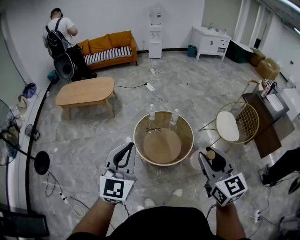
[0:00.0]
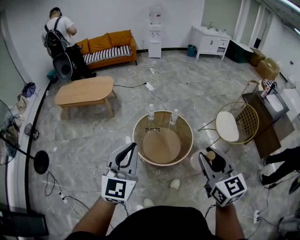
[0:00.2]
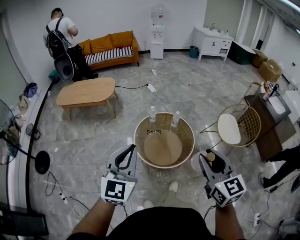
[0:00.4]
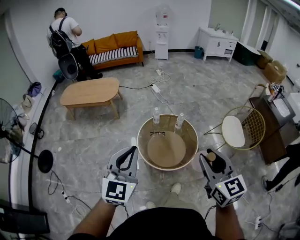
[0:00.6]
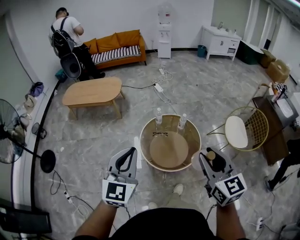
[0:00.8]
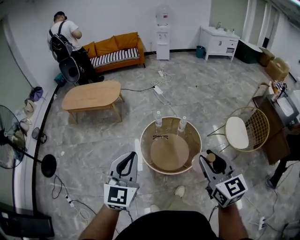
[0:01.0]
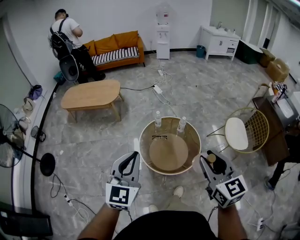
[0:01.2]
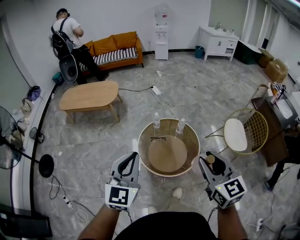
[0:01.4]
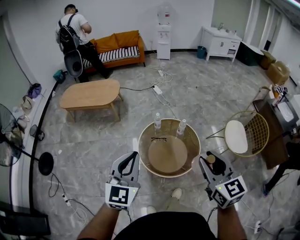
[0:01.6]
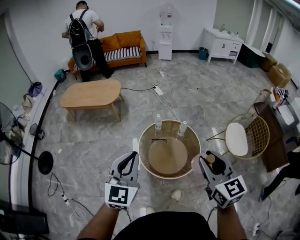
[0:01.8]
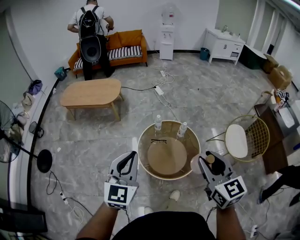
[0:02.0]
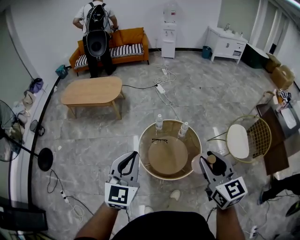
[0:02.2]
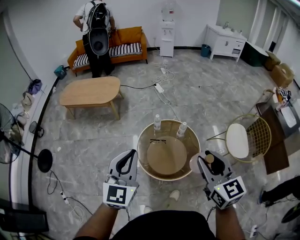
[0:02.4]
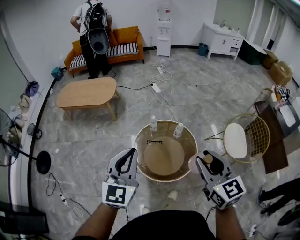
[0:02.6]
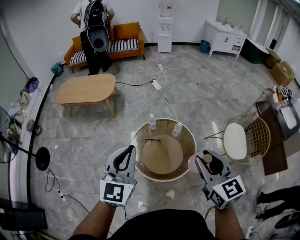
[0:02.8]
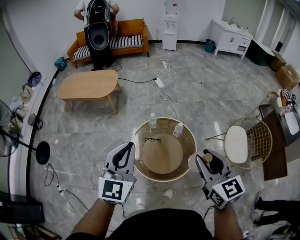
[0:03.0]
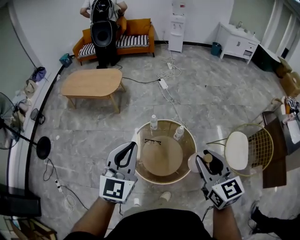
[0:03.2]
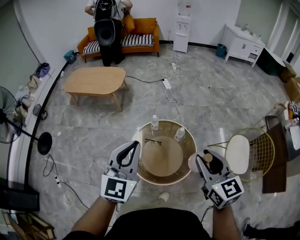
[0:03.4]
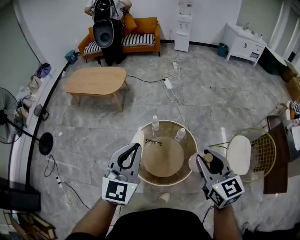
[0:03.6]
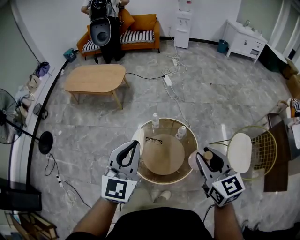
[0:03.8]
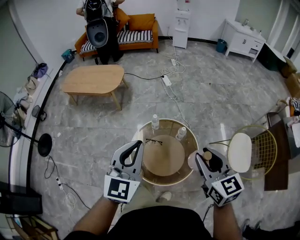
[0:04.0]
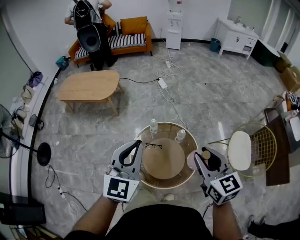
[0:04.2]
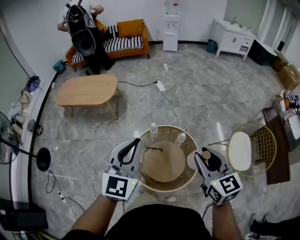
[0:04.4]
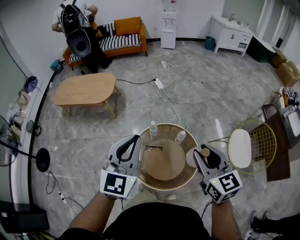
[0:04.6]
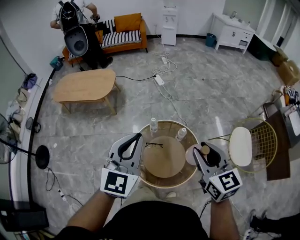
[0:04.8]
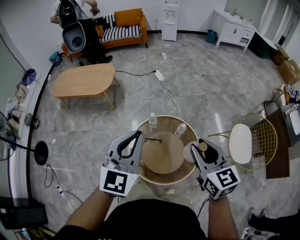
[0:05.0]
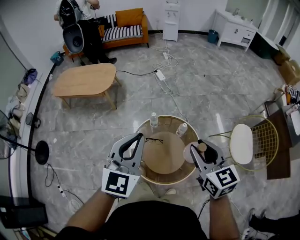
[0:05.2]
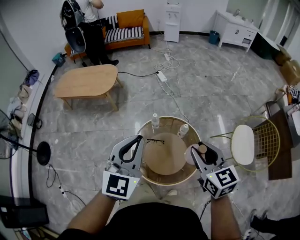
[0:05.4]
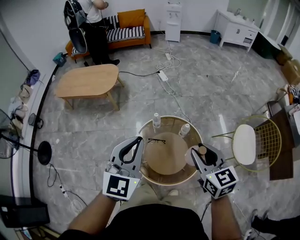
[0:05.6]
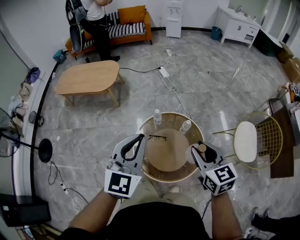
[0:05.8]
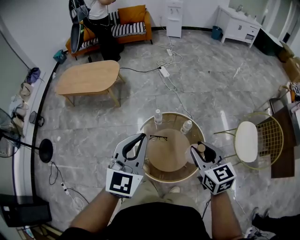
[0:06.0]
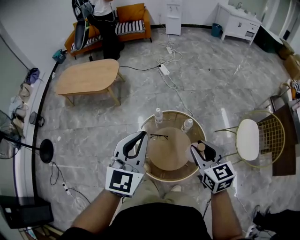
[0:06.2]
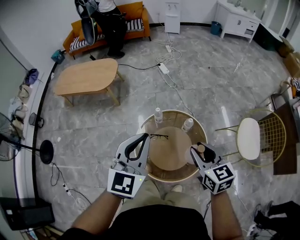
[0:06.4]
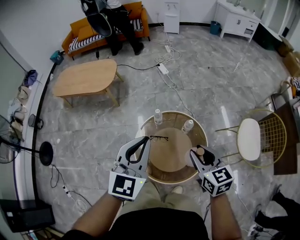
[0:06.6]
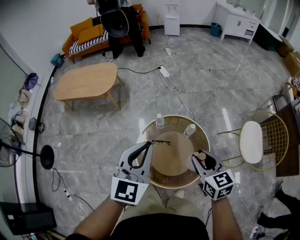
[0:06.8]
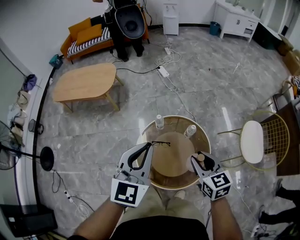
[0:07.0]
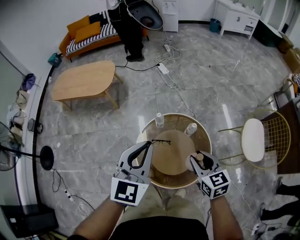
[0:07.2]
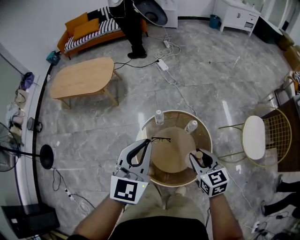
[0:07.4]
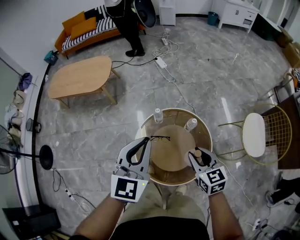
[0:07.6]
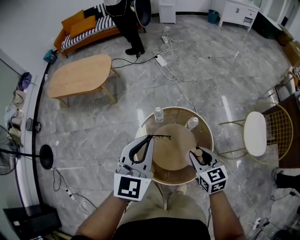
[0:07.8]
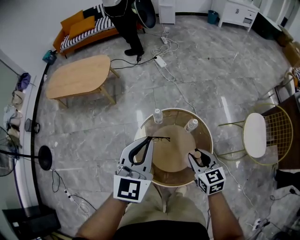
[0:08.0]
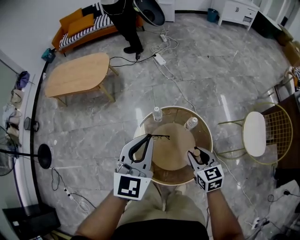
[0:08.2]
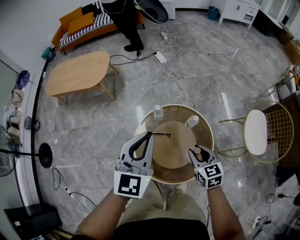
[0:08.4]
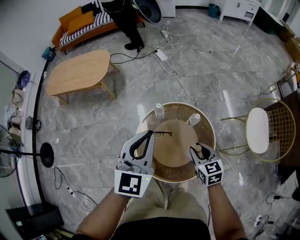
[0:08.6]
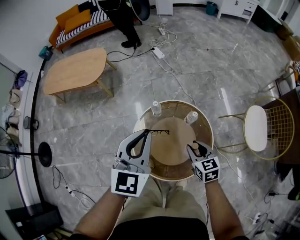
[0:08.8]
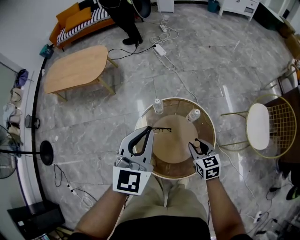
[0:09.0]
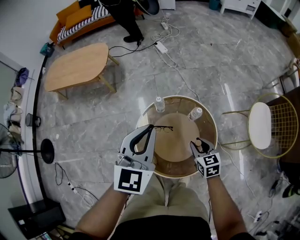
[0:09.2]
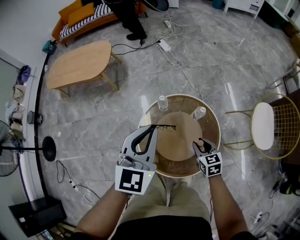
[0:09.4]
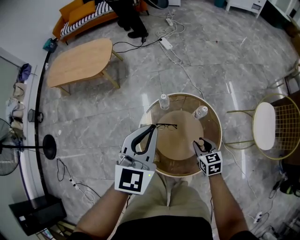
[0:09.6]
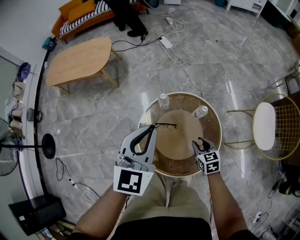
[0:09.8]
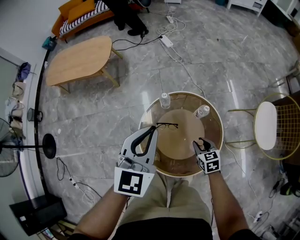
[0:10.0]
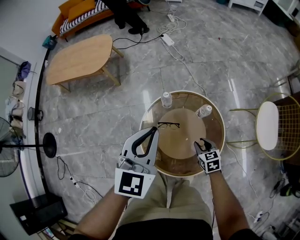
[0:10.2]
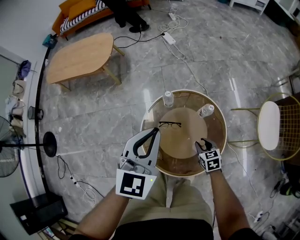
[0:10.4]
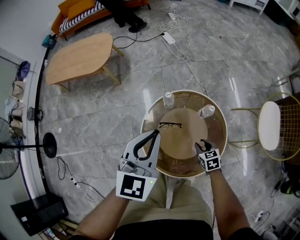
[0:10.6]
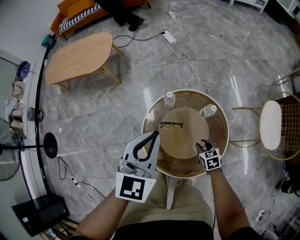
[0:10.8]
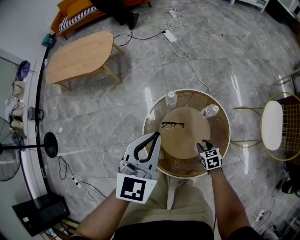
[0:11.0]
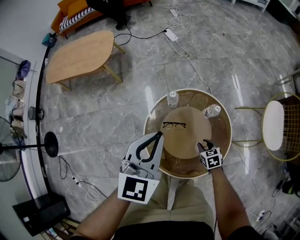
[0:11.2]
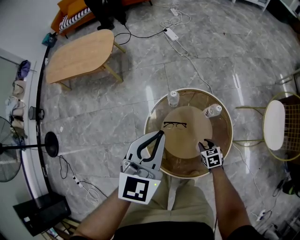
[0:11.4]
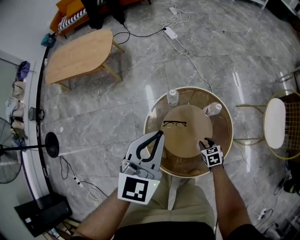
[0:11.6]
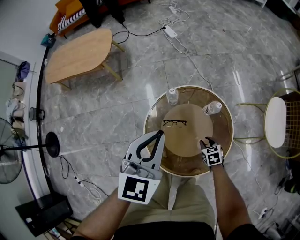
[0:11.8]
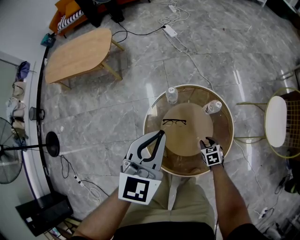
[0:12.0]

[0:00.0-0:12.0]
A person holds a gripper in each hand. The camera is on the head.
0.0 to 1.6 s: The grippers both shift forward by about 10 cm.
1.6 to 3.0 s: The grippers both shift forward and to the right by some 15 cm.
3.0 to 4.4 s: The grippers both shift forward by some 10 cm.
4.4 to 6.0 s: The right gripper shifts roughly 10 cm downward. Meanwhile the left gripper goes roughly 5 cm downward.
6.0 to 7.6 s: The left gripper shifts approximately 10 cm downward and forward. Meanwhile the right gripper travels downward by some 15 cm.
7.6 to 9.0 s: The left gripper changes place by about 5 cm; the right gripper shifts approximately 15 cm downward.
9.0 to 10.4 s: The right gripper is displaced downward by approximately 15 cm; the left gripper travels downward by about 5 cm.
10.4 to 12.0 s: The right gripper is displaced downward by approximately 10 cm.

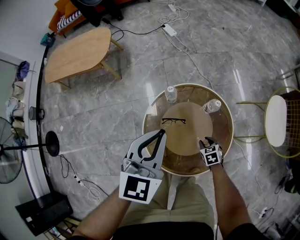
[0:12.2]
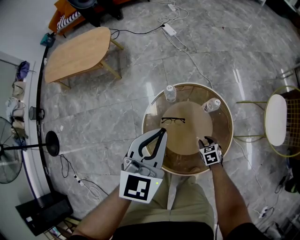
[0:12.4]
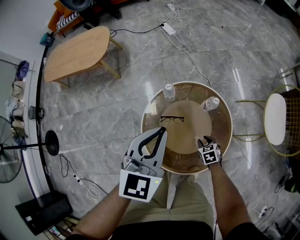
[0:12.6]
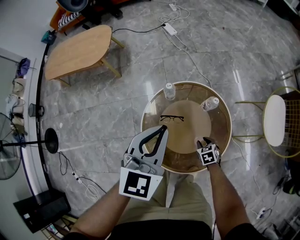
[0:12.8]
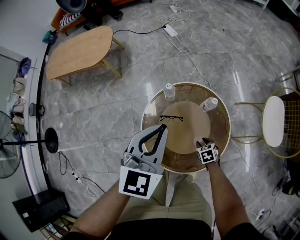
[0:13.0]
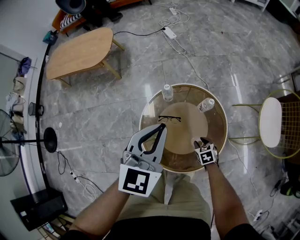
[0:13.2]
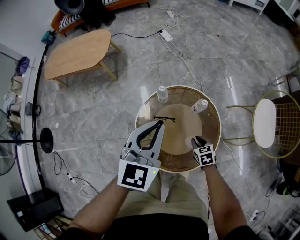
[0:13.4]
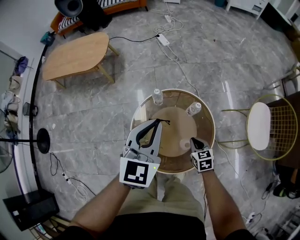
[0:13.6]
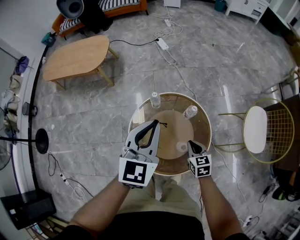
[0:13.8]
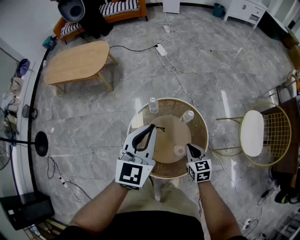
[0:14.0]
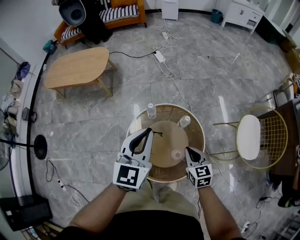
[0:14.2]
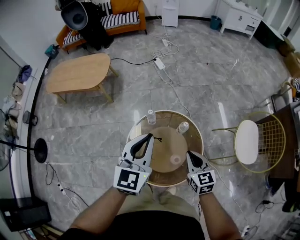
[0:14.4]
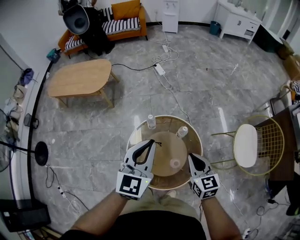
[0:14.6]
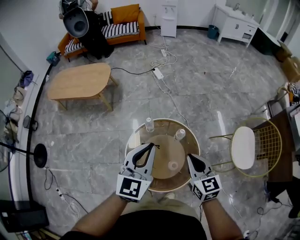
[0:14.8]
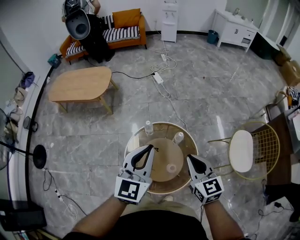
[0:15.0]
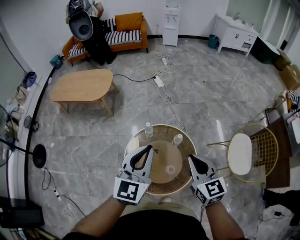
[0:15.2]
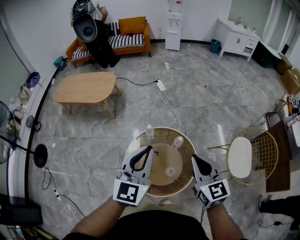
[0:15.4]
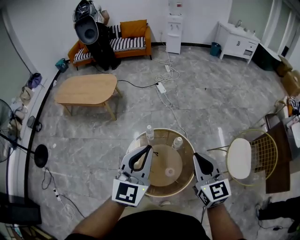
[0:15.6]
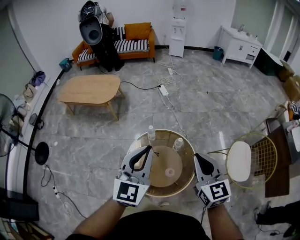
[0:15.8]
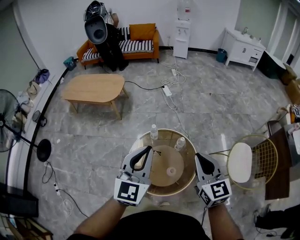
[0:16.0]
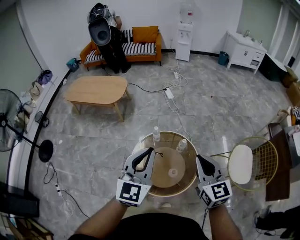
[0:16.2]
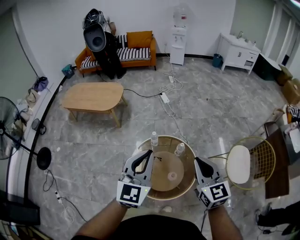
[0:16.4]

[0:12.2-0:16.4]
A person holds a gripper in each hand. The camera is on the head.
12.2 to 13.6 s: The right gripper heads upward, covering about 15 cm, and closes its fingers. Meanwhile the left gripper travels upward by roughly 5 cm.
13.6 to 15.0 s: The right gripper shifts roughly 30 cm upward, and changes its angle by roughly 30 degrees. The left gripper moves upward, approximately 10 cm.
15.0 to 16.4 s: The two grippers go roughly 10 cm upward and backward.

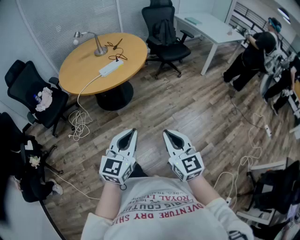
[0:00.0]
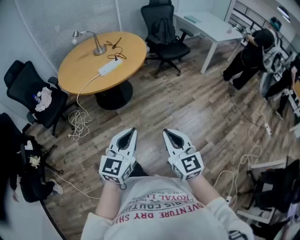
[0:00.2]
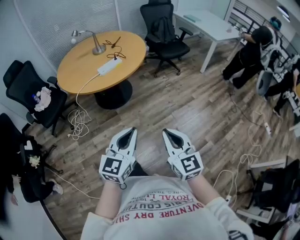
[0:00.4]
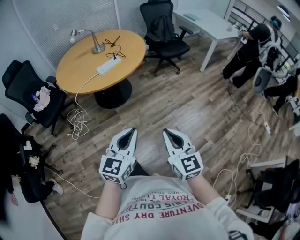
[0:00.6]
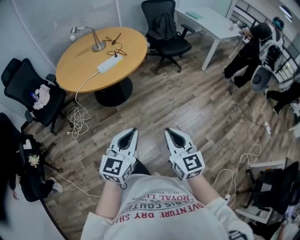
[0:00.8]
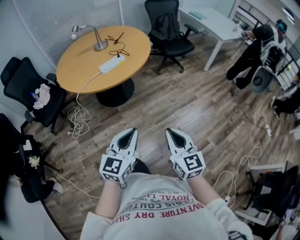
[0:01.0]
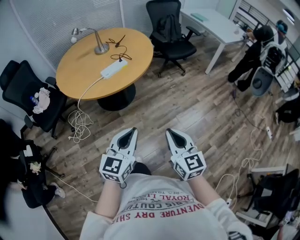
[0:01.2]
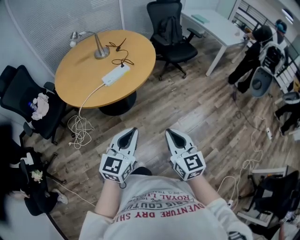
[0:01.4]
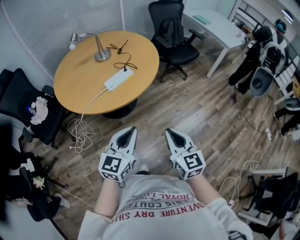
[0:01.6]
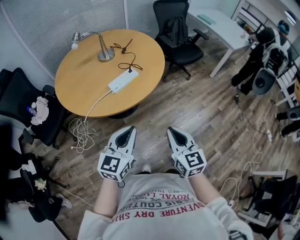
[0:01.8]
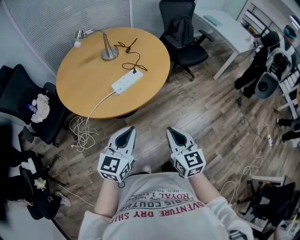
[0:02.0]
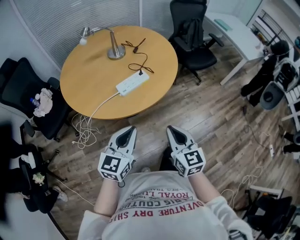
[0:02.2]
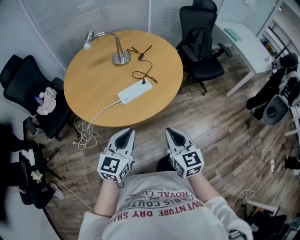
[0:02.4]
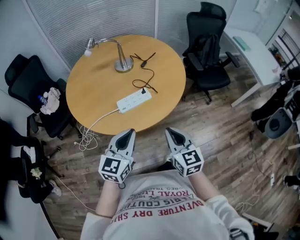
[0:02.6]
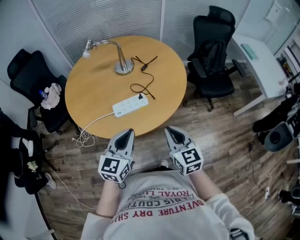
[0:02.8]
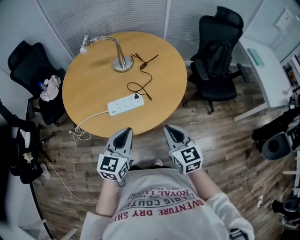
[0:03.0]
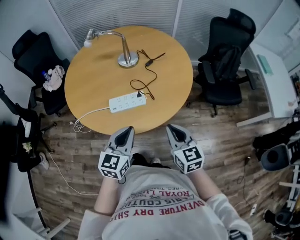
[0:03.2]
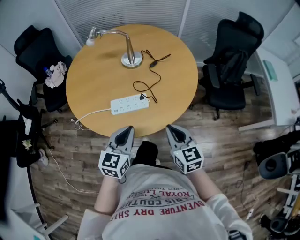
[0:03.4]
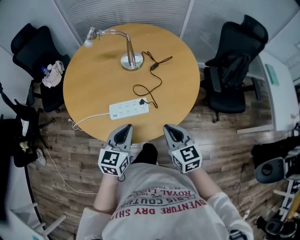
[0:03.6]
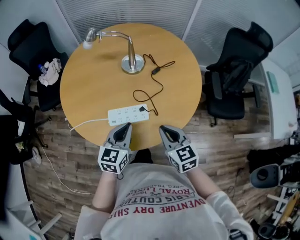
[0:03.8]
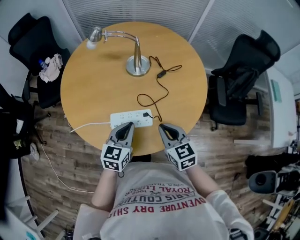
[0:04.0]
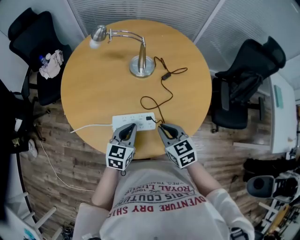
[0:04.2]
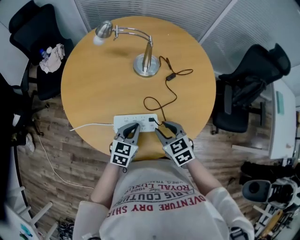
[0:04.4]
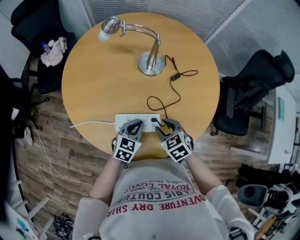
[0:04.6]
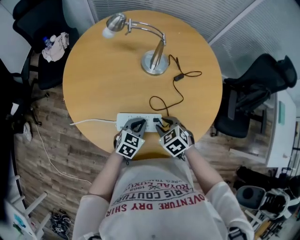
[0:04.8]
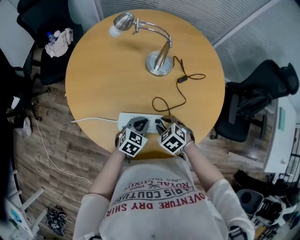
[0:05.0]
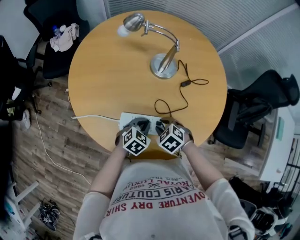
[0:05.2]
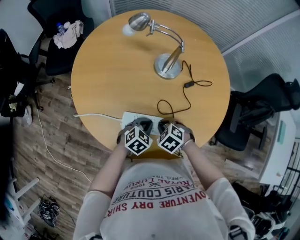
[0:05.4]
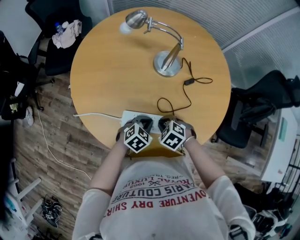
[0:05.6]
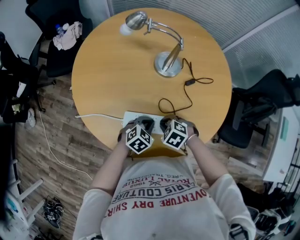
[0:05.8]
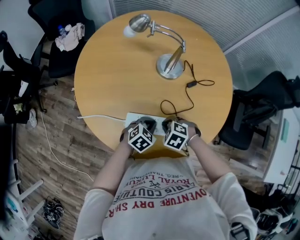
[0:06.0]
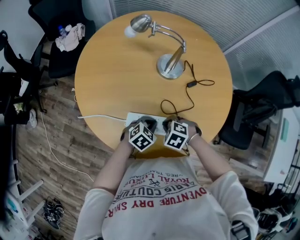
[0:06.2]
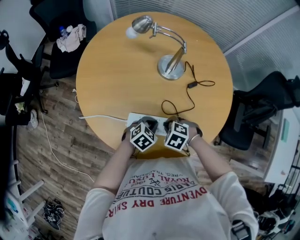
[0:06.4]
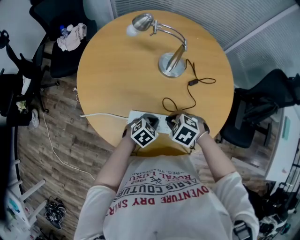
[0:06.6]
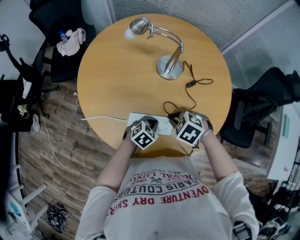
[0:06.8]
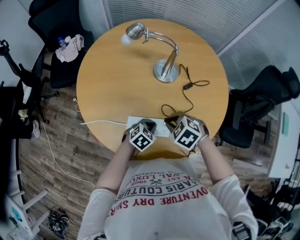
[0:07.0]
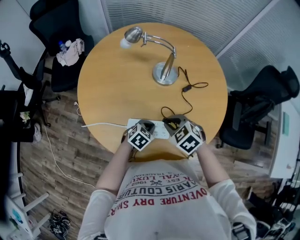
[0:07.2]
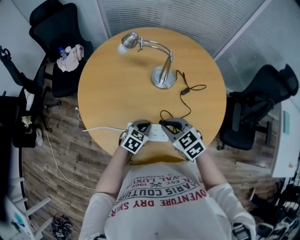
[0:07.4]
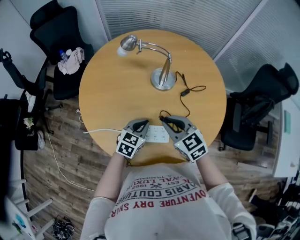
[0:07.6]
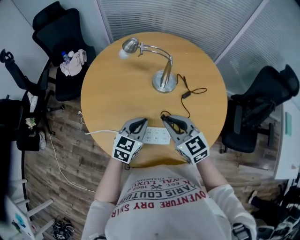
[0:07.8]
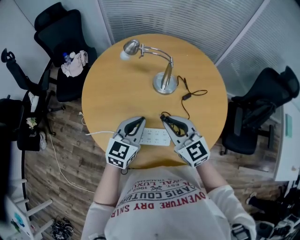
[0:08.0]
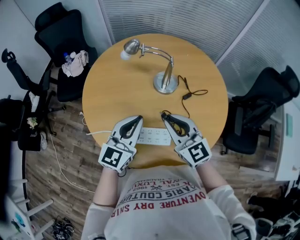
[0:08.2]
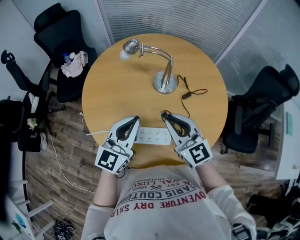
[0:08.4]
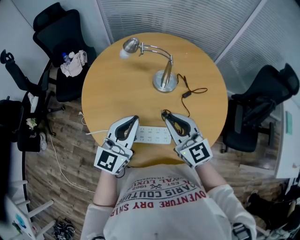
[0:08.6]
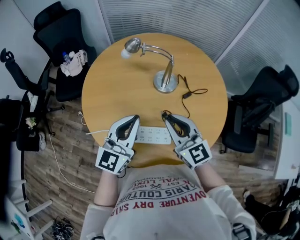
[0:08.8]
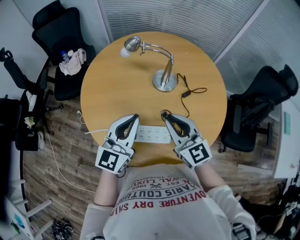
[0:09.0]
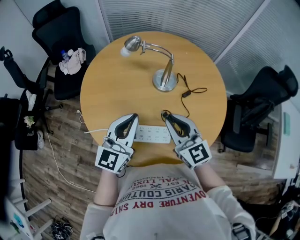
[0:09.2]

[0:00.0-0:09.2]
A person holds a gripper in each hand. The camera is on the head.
0.0 to 1.6 s: The two grippers go about 25 cm forward and to the left.
1.6 to 3.0 s: The left gripper ends up approximately 30 cm from where it was, and rotates roughly 30 degrees; the right gripper shifts by roughly 35 cm, and turns by approximately 30 degrees.
3.0 to 4.6 s: The left gripper moves downward and forward, roughly 30 cm, and turns by about 20 degrees. Meanwhile the right gripper moves forward and downward, roughly 30 cm, tips its fingers downward by roughly 30 degrees, and opens.
4.6 to 6.2 s: Both grippers move downward, roughly 5 cm. The right gripper changes its angle by about 40 degrees, and closes.
6.2 to 7.6 s: The right gripper shifts about 15 cm upward, and points its fingers approximately 50 degrees further upward. The left gripper shifts some 10 cm upward, and swivels roughly 20 degrees.
7.6 to 9.2 s: The right gripper travels upward by approximately 5 cm, and turns by some 20 degrees; the left gripper is displaced upward by about 20 cm, and angles its fingers upward, by approximately 40 degrees.
